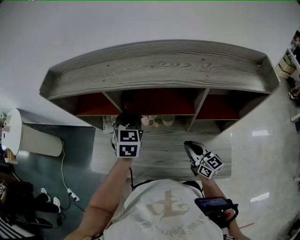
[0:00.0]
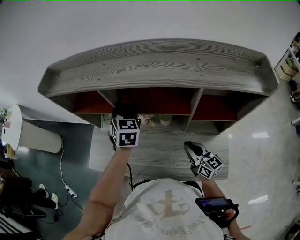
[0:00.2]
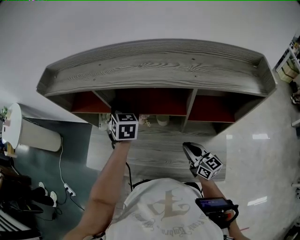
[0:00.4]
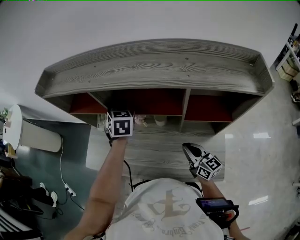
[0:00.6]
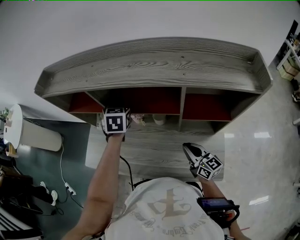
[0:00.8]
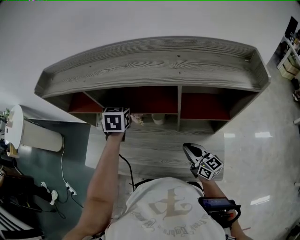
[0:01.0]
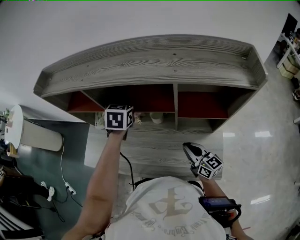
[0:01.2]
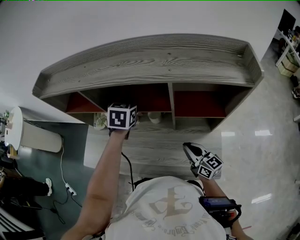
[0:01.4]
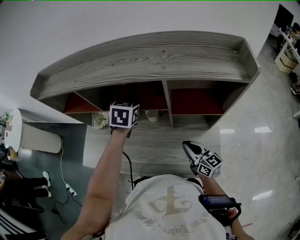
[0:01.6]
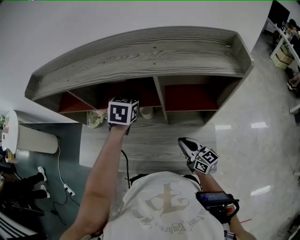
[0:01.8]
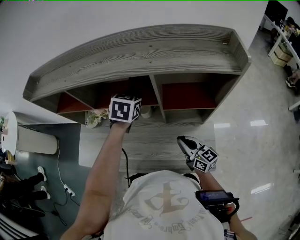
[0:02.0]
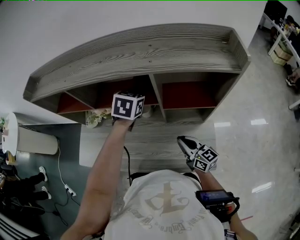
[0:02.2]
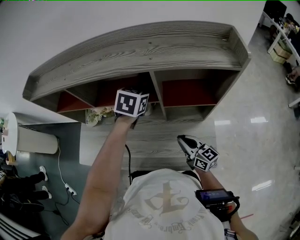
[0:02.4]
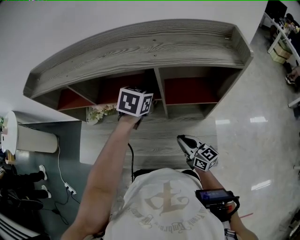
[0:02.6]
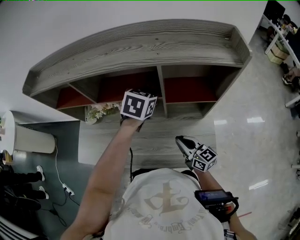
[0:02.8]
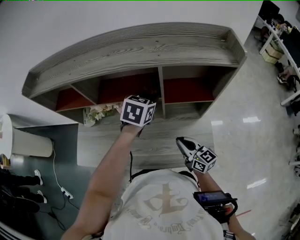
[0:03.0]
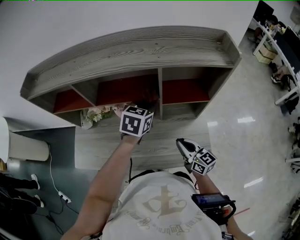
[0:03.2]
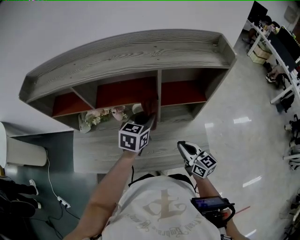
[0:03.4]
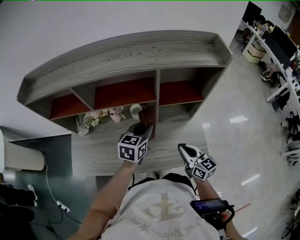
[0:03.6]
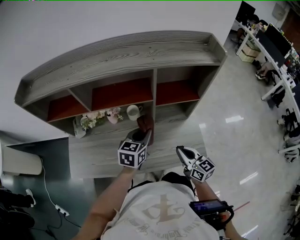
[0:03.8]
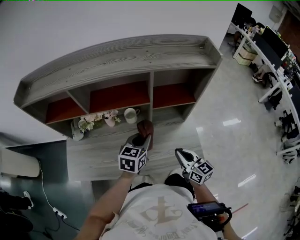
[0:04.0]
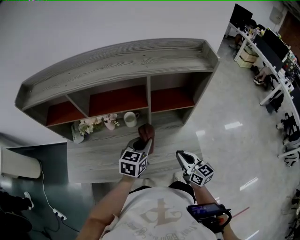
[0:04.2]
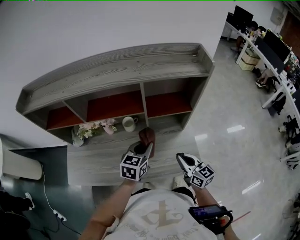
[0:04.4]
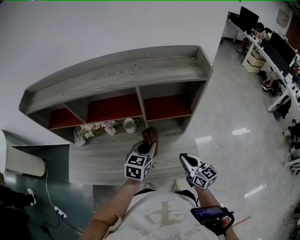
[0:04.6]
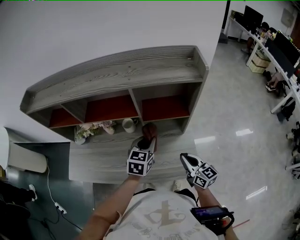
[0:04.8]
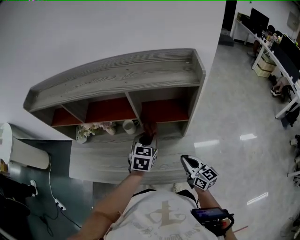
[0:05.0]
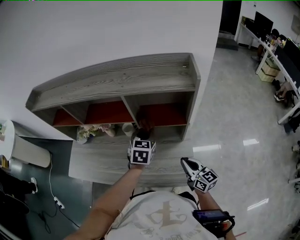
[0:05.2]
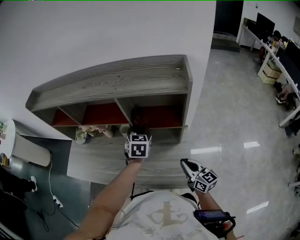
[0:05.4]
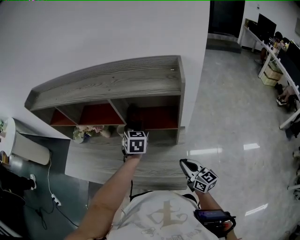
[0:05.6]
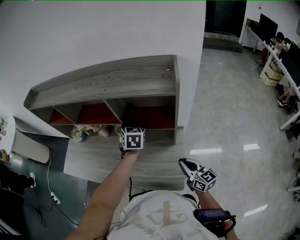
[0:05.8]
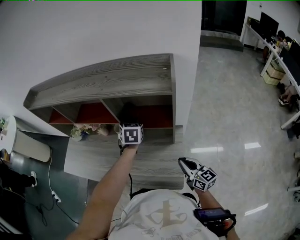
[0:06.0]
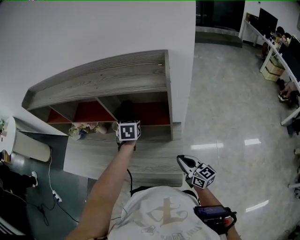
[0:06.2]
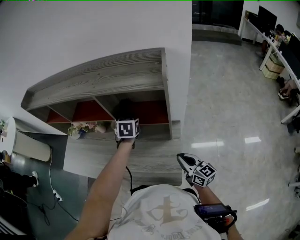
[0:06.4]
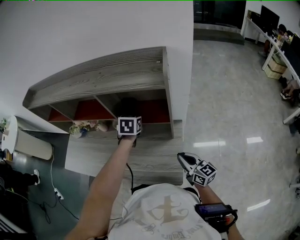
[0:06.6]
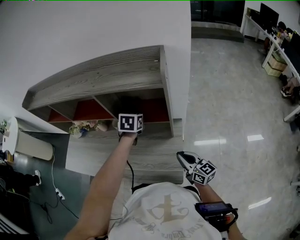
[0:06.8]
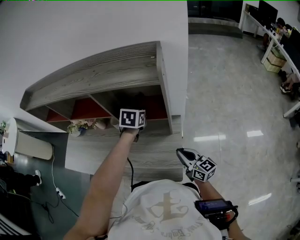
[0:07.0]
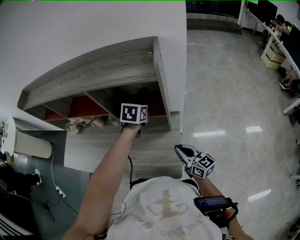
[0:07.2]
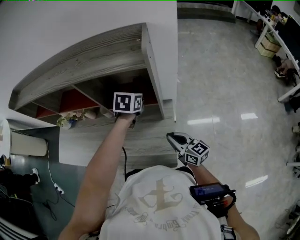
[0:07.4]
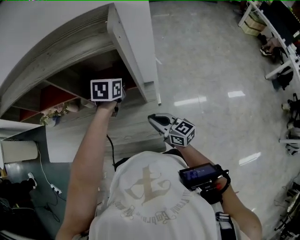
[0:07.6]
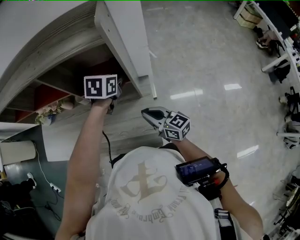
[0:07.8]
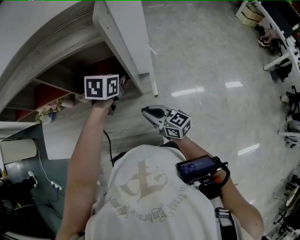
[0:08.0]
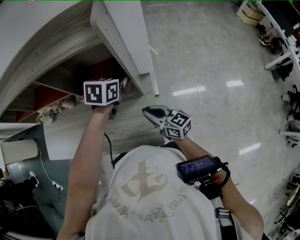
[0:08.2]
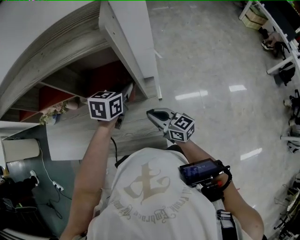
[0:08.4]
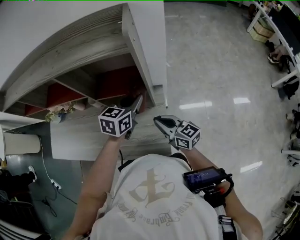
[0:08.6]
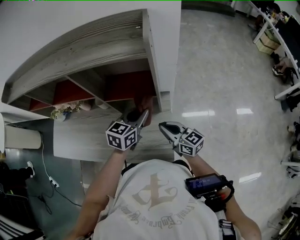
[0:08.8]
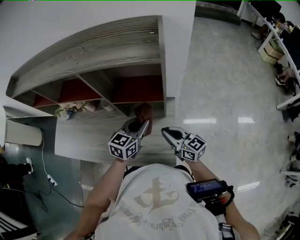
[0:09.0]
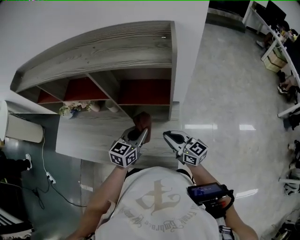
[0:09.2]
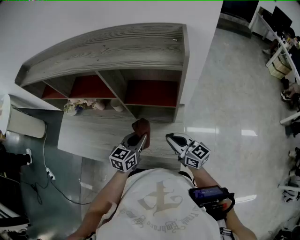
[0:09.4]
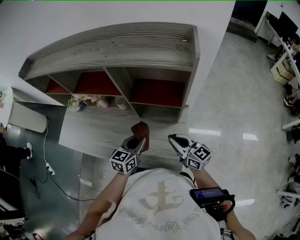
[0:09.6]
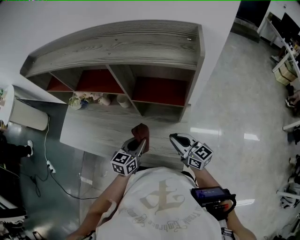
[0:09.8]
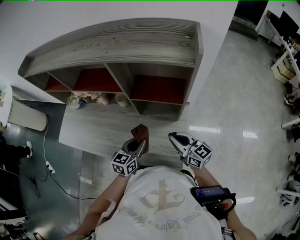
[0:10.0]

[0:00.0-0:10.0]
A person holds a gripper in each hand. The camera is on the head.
0:00.0 to 0:01.4: The right gripper heads to the right and backward, covering about 10 cm, while the left gripper heads to the right, covering some 10 cm.
0:01.4 to 0:02.8: The left gripper is displaced to the right and backward by about 15 cm.
0:02.8 to 0:04.2: The left gripper travels backward by approximately 20 cm; the right gripper heads backward, covering roughly 5 cm.
0:04.2 to 0:05.8: The right gripper ends up roughly 20 cm from where it was; the left gripper shifts by about 20 cm, and changes its angle by approximately 40 degrees.
0:05.8 to 0:07.2: The left gripper is displaced to the right by about 10 cm, and changes its angle by some 20 degrees.
0:07.2 to 0:08.6: The left gripper goes some 10 cm backward, and rotates approximately 20 degrees.
0:08.6 to 0:10.0: The right gripper travels to the left by approximately 5 cm. Meanwhile the left gripper moves to the left, backward and downward, approximately 20 cm.

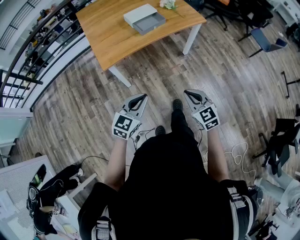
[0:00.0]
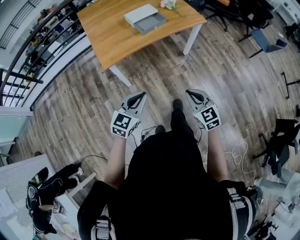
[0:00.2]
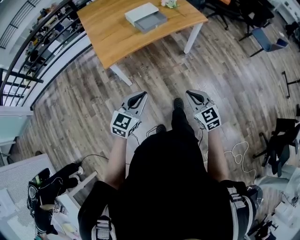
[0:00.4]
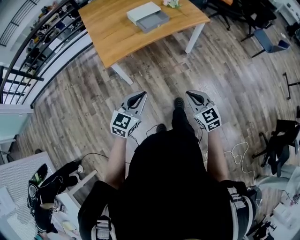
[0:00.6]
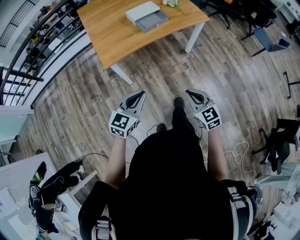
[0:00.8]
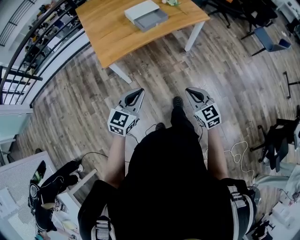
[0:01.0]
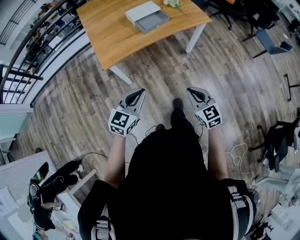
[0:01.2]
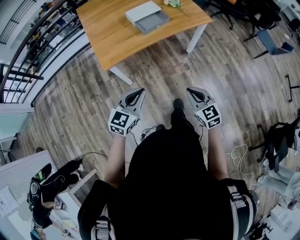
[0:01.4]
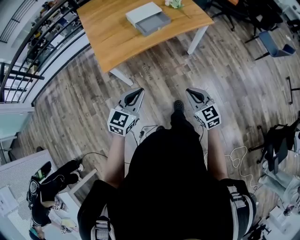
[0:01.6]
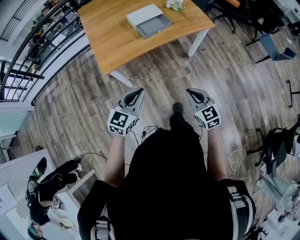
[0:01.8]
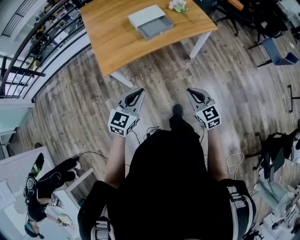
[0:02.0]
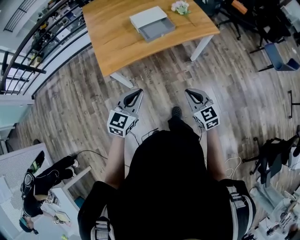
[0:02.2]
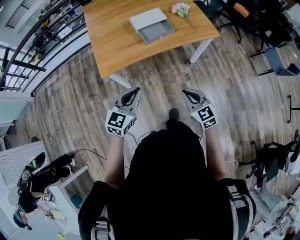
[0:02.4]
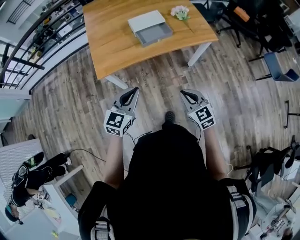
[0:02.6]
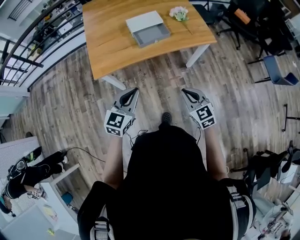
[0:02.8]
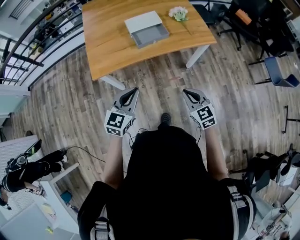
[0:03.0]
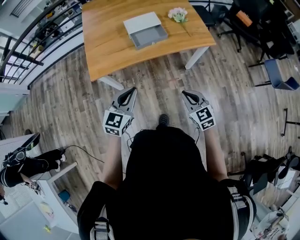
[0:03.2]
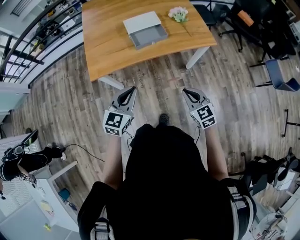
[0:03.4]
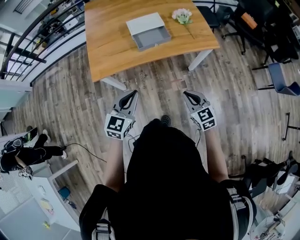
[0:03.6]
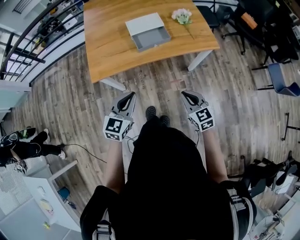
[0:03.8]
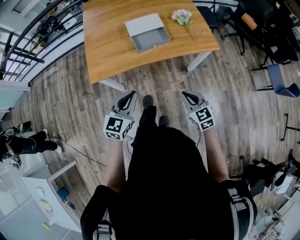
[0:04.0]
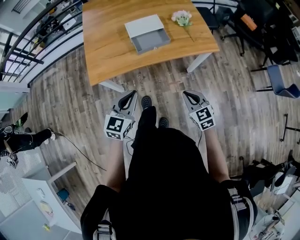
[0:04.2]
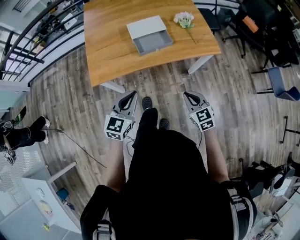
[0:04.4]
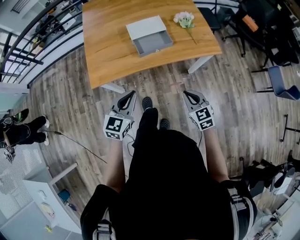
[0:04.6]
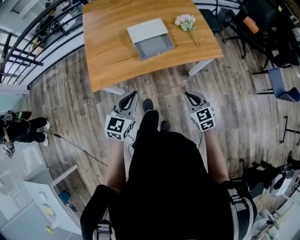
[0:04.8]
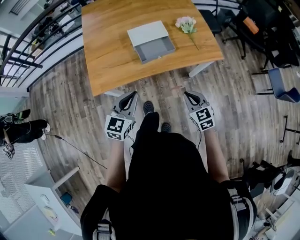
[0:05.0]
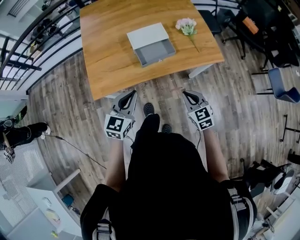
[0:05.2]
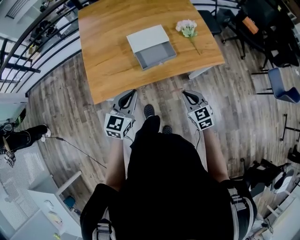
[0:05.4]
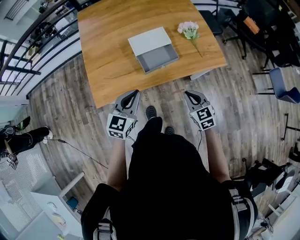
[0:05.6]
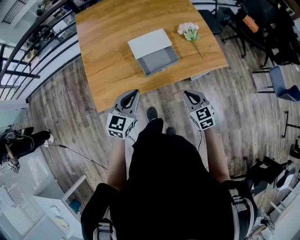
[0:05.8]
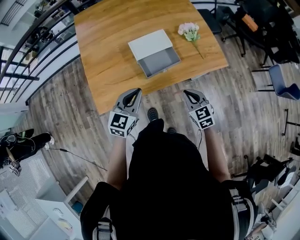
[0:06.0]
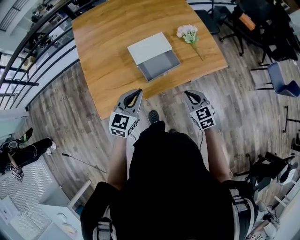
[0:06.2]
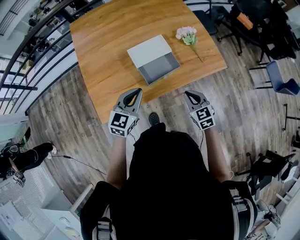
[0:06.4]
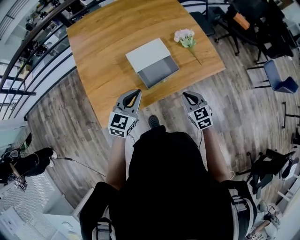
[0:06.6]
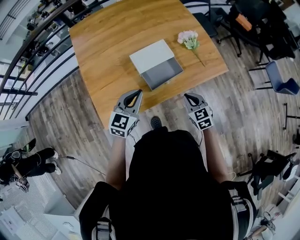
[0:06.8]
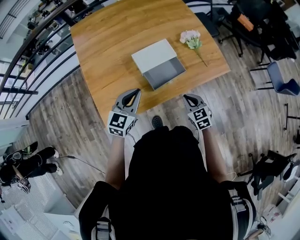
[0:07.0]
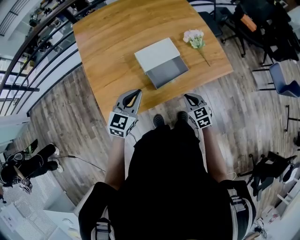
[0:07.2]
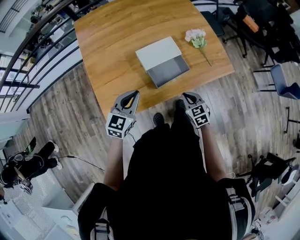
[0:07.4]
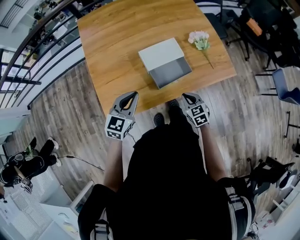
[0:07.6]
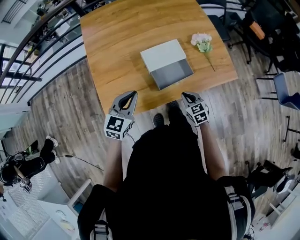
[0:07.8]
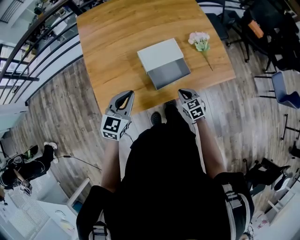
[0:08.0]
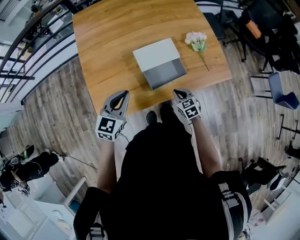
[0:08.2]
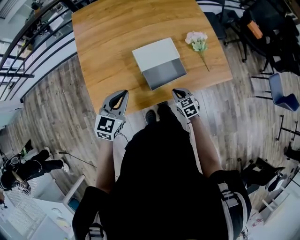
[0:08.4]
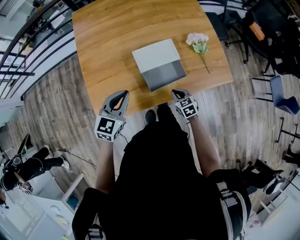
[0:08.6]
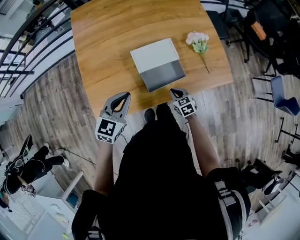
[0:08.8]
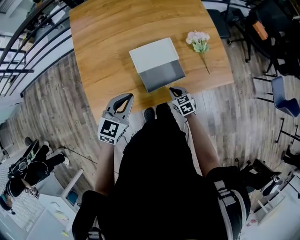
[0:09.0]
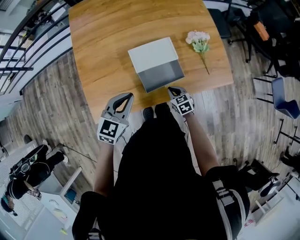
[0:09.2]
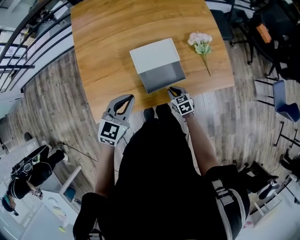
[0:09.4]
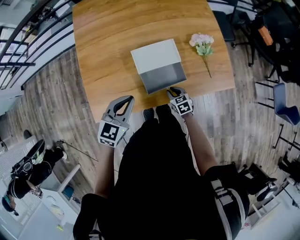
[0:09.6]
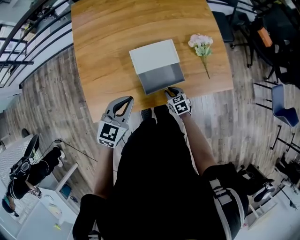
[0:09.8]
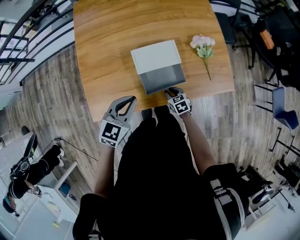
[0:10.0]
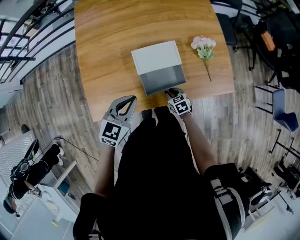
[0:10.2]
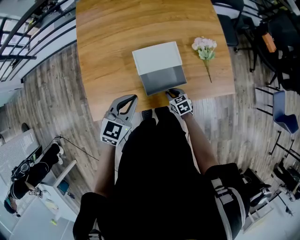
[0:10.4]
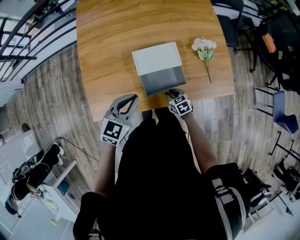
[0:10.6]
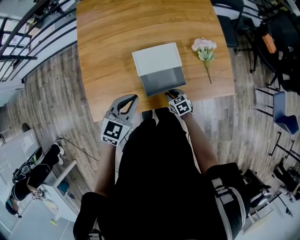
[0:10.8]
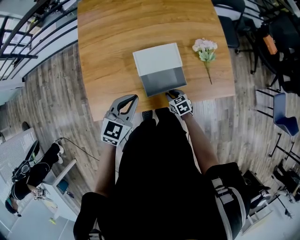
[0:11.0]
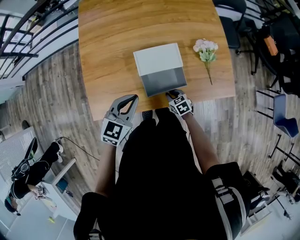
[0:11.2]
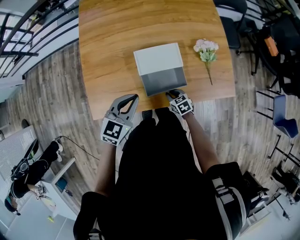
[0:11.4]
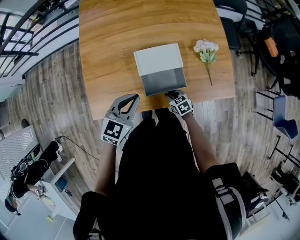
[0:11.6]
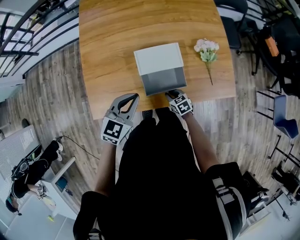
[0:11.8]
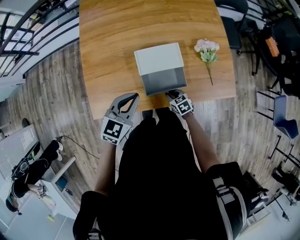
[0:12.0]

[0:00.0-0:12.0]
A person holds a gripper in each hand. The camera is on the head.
0:00.0 to 0:01.6: The grippers both shift forward by approximately 10 cm.
0:01.6 to 0:03.0: The grippers both shift forward and to the right by about 20 cm.
0:03.0 to 0:04.4: The grippers both shift forward by approximately 10 cm.
0:04.4 to 0:06.0: Both grippers move forward, about 25 cm.
0:06.0 to 0:07.6: The right gripper heads downward, to the left and forward, covering some 15 cm. The left gripper heads to the left and forward, covering roughly 10 cm.
0:07.6 to 0:09.0: The left gripper is displaced forward and to the right by approximately 10 cm; the right gripper shifts some 15 cm forward and downward.
0:09.0 to 0:12.0: The grippers make only small movements.

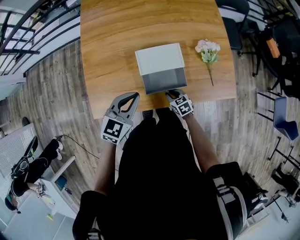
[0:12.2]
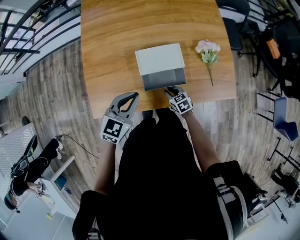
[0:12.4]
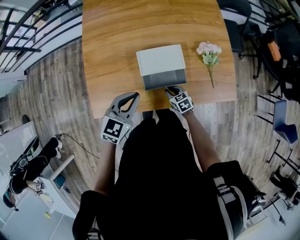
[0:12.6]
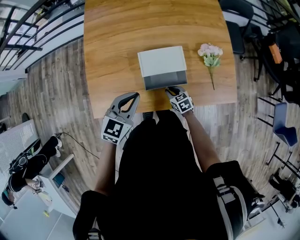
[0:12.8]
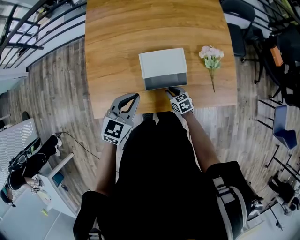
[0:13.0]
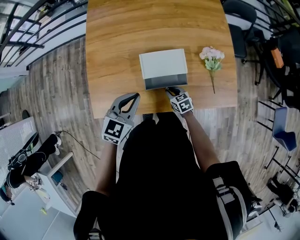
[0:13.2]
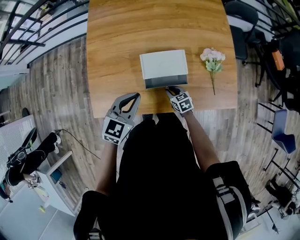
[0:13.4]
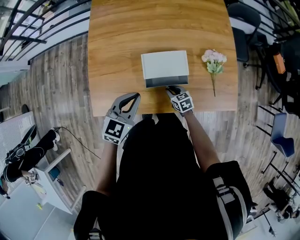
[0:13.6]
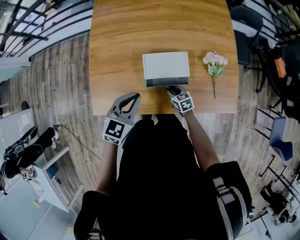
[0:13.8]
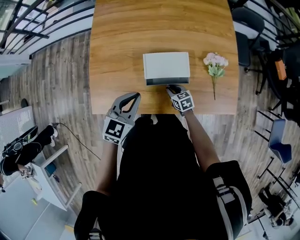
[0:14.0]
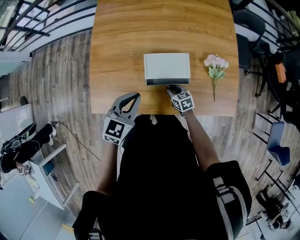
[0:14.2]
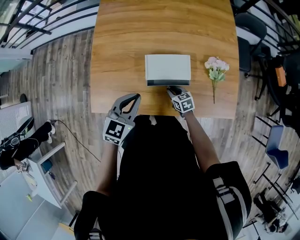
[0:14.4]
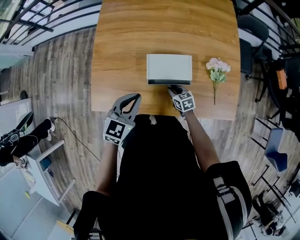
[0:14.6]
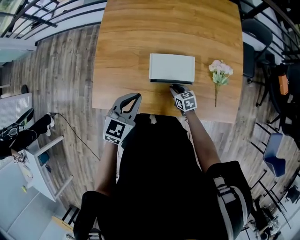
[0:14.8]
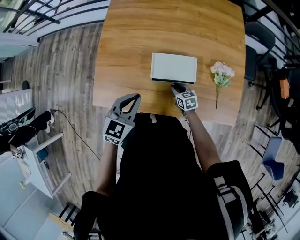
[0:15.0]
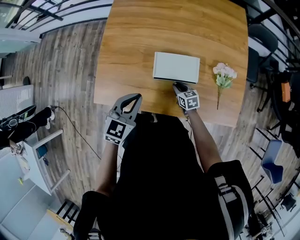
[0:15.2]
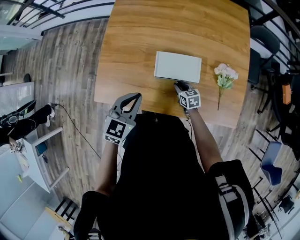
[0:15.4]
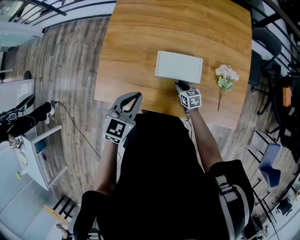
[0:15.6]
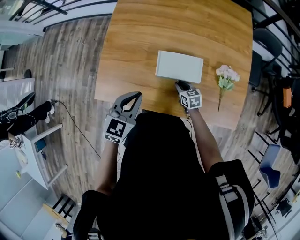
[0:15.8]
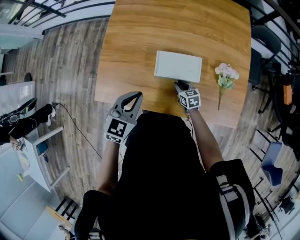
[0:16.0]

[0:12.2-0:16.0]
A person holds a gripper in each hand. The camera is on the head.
0:12.2 to 0:13.4: The right gripper moves forward, approximately 5 cm.
0:13.4 to 0:16.0: The grippers move only a little.
